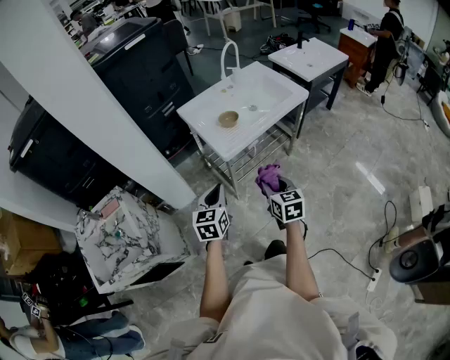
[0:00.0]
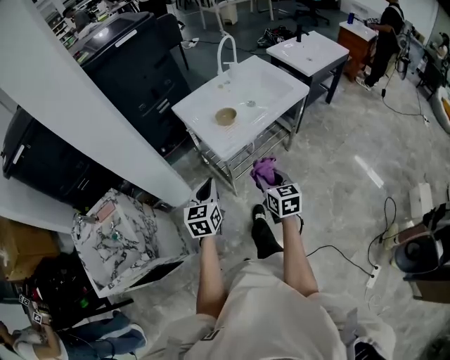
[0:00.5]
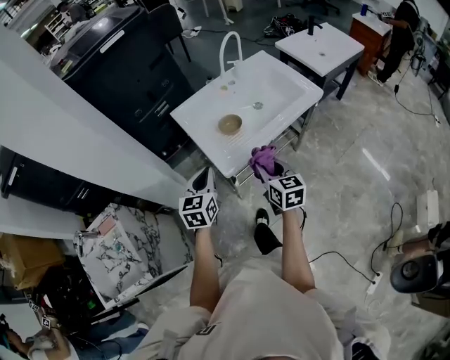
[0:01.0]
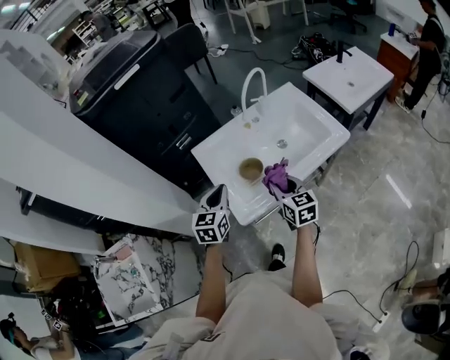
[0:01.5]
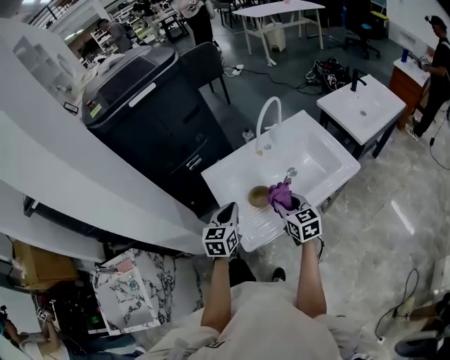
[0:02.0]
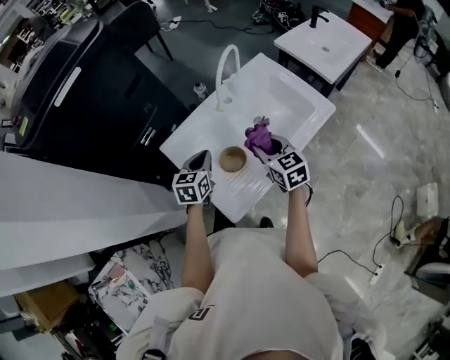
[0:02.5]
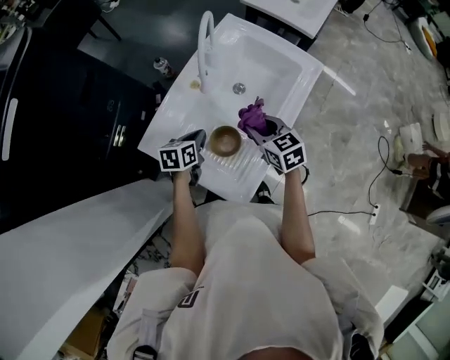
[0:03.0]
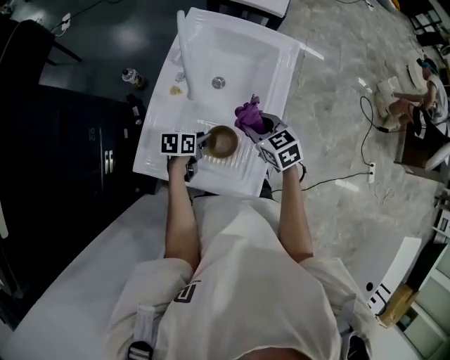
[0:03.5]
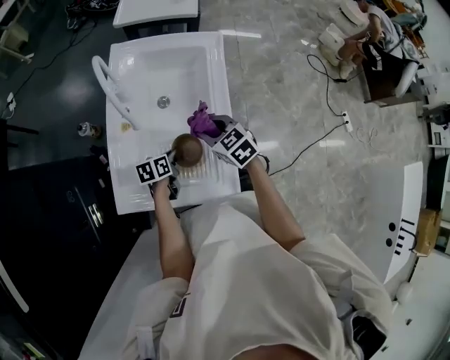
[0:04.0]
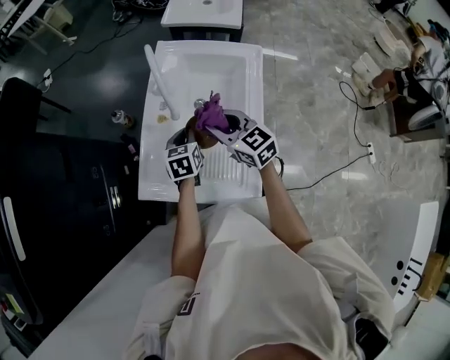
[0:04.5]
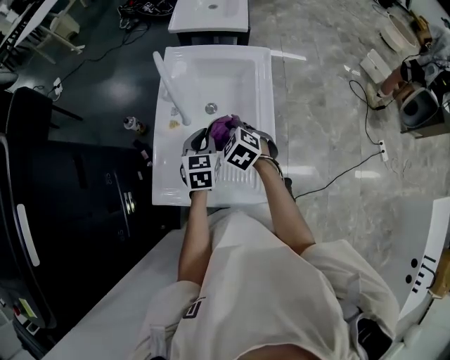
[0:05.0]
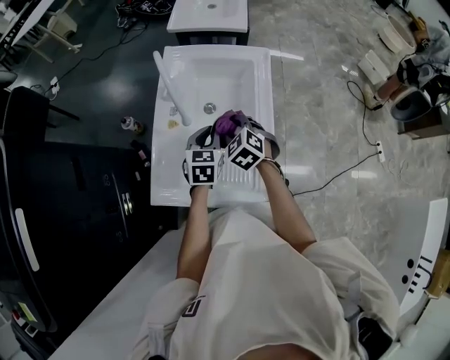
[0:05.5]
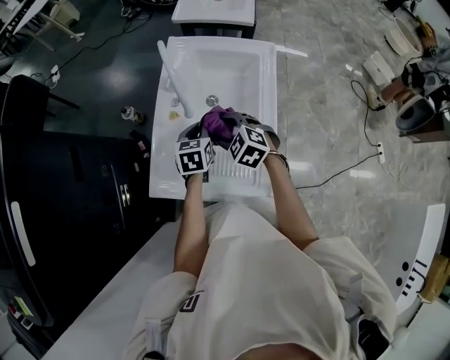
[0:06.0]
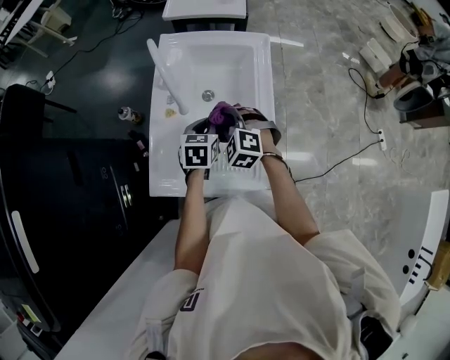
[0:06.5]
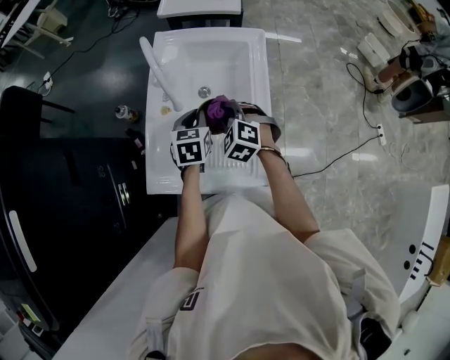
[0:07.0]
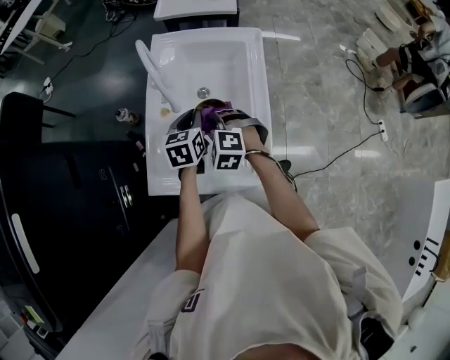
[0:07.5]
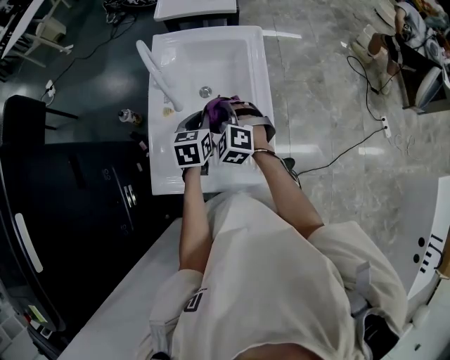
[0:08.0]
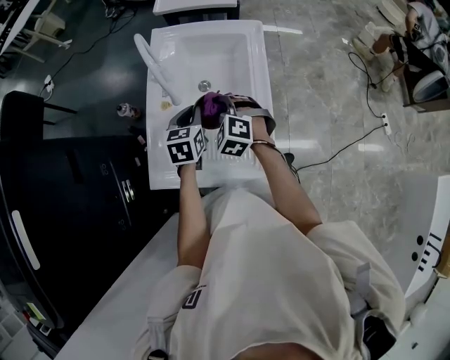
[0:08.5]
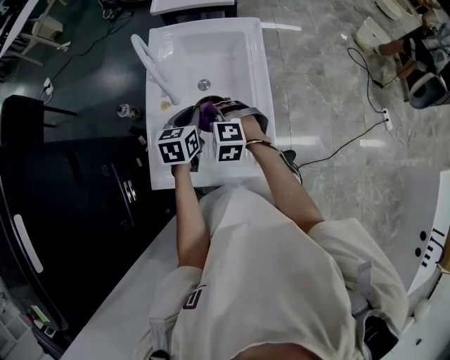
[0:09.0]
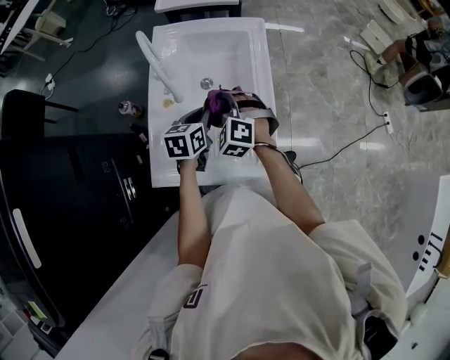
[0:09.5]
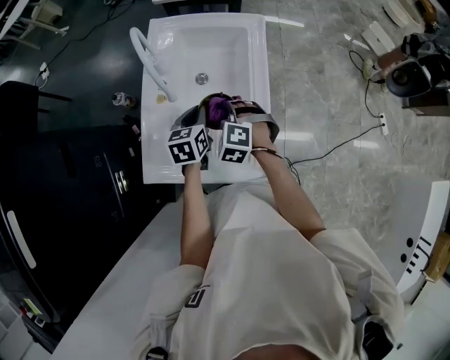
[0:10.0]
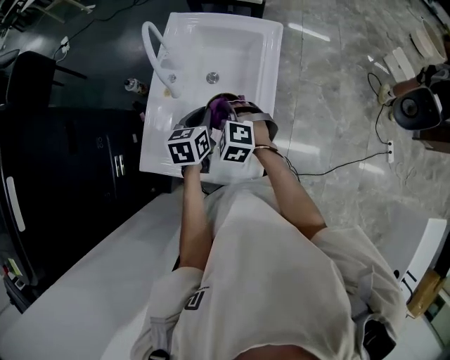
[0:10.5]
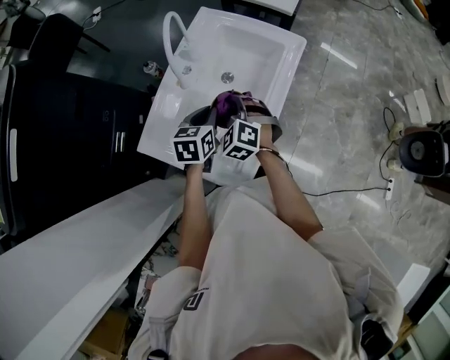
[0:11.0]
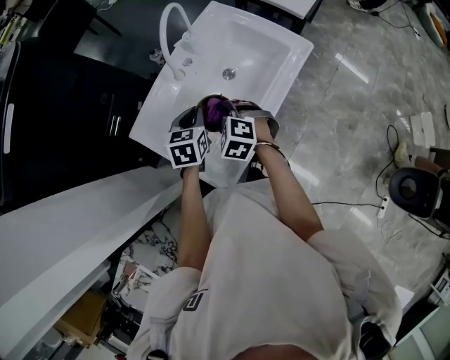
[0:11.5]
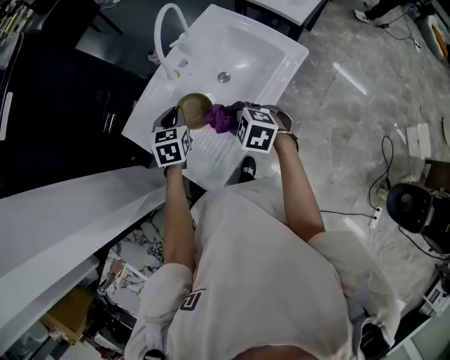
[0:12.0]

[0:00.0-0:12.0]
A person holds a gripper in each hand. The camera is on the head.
0.0 to 2.0 s: The grippers both shift forward by about 35 cm.
2.0 to 4.0 s: The left gripper heads downward, covering some 20 cm, turns by approximately 70 degrees, and opens, then closes once more, while the right gripper heads downward, covering roughly 10 cm, and turns by some 40 degrees.
4.0 to 6.0 s: The right gripper goes approximately 10 cm to the left, moves approximately 10 cm upward and comes back, turns by approximately 30 degrees, and opens up. Meanwhile the left gripper shifts roughly 15 cm upward and forward, and swivels approximately 30 degrees.
6.0 to 8.0 s: The right gripper changes its angle by approximately 20 degrees, and closes its fingers.
8.0 to 10.0 s: The right gripper changes place by roughly 5 cm.
10.0 to 12.0 s: The left gripper ends up approximately 5 cm from where it was, and swivels roughly 40 degrees, while the right gripper moves some 10 cm, and rotates about 50 degrees.

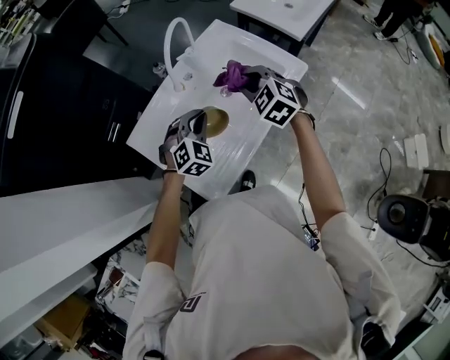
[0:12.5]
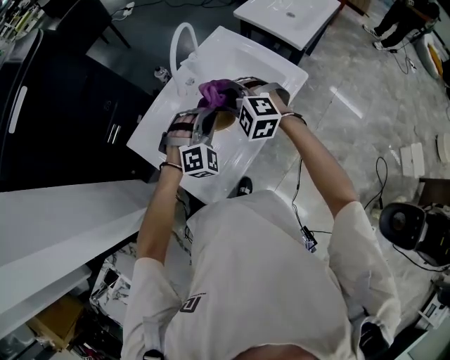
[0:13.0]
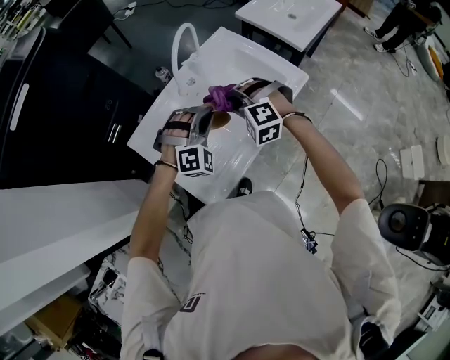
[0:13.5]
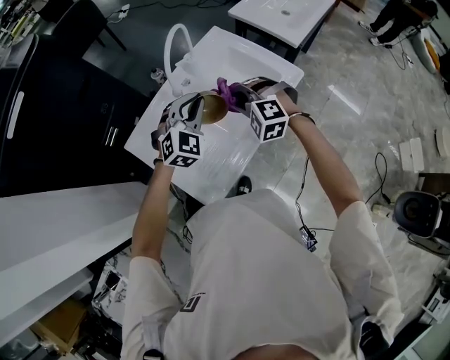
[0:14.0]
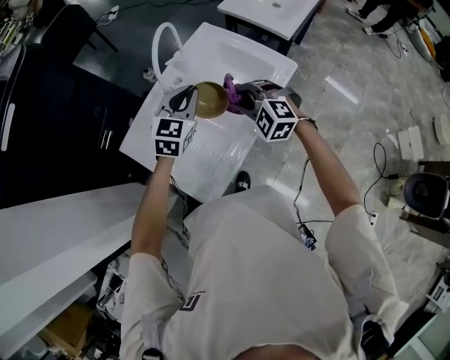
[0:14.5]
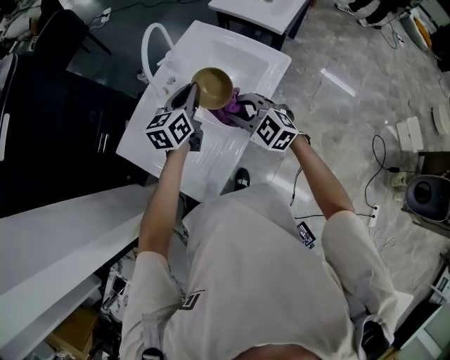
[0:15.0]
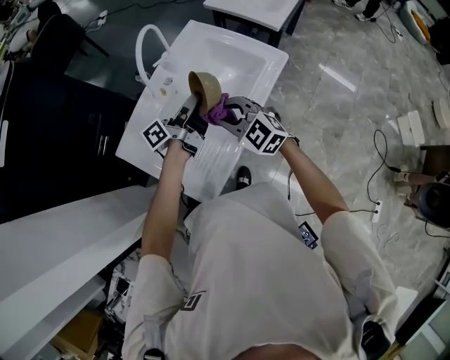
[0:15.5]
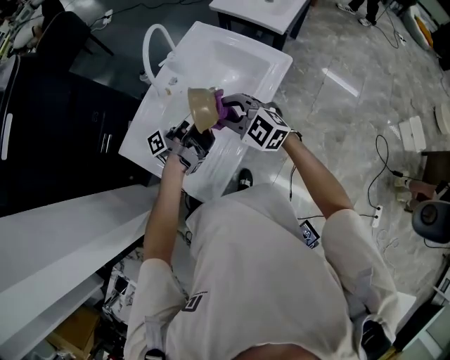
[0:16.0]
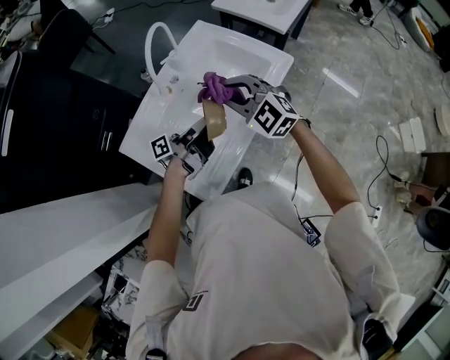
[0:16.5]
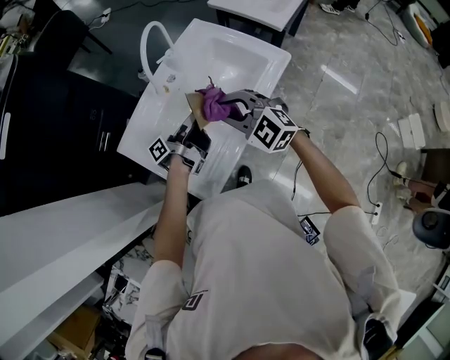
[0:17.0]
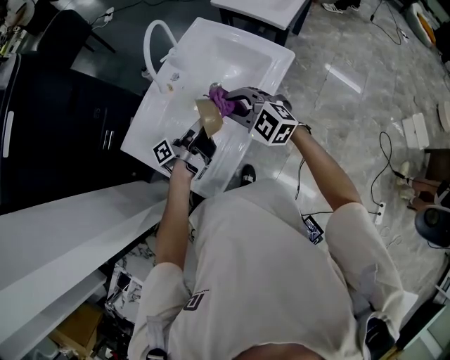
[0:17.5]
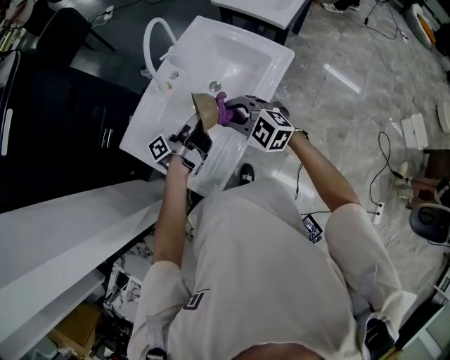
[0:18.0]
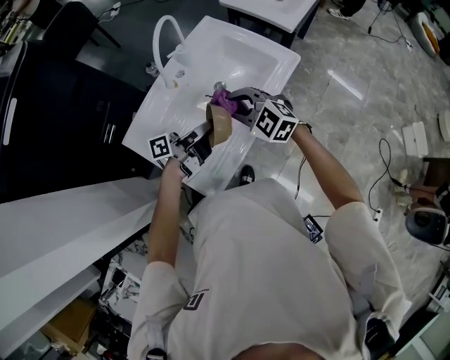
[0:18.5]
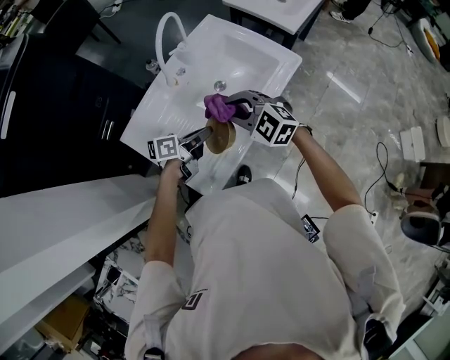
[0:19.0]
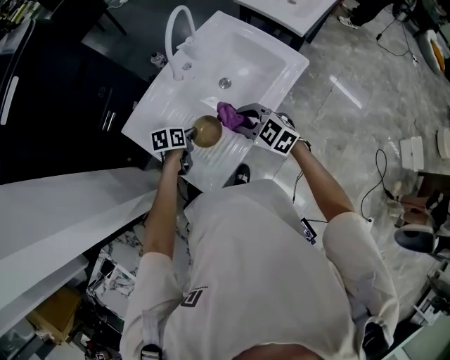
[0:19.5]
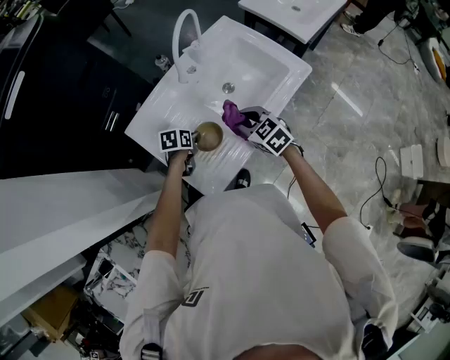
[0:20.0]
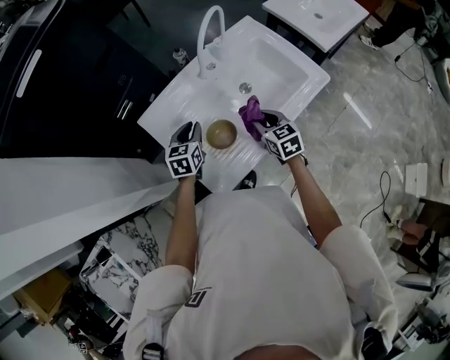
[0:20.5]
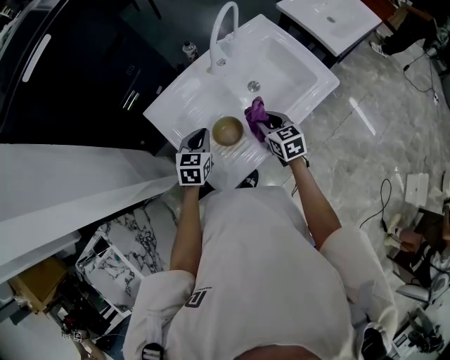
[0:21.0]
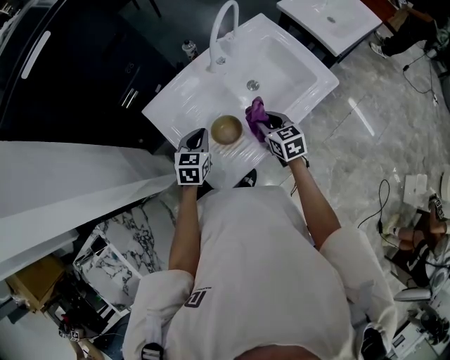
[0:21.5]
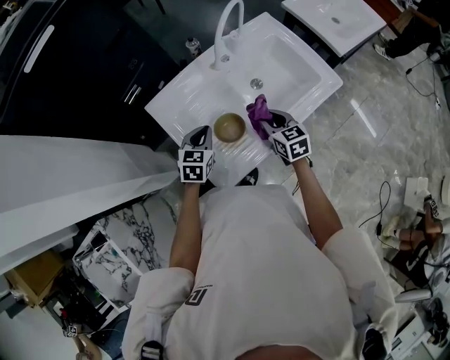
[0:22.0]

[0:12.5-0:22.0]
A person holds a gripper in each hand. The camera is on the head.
12.5 to 14.5 s: The right gripper moves approximately 5 cm. The left gripper is displaced upward and forward by about 10 cm, and swivels some 30 degrees.
14.5 to 16.5 s: The left gripper heads backward and downward, covering approximately 10 cm, and rotates around the line of its fingers by roughly 90 degrees, counterclockwise from behind, while the right gripper moves upward, roughly 5 cm, and swivels approximately 20 degrees.
16.5 to 18.0 s: The right gripper is displaced downward and backward by roughly 10 cm.
18.0 to 20.0 s: The right gripper goes roughly 5 cm downward, and rotates approximately 30 degrees. The left gripper heads downward and to the left, covering roughly 20 cm, and points its fingers about 70 degrees further downward.
20.0 to 22.0 s: The left gripper heads upward, covering about 10 cm, and rotates about 40 degrees.

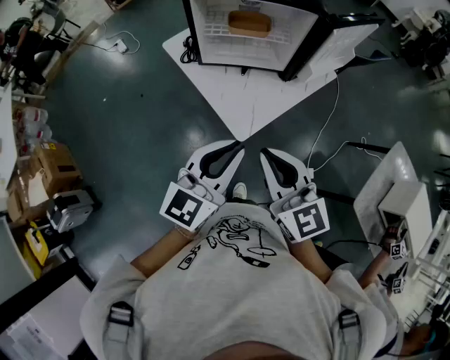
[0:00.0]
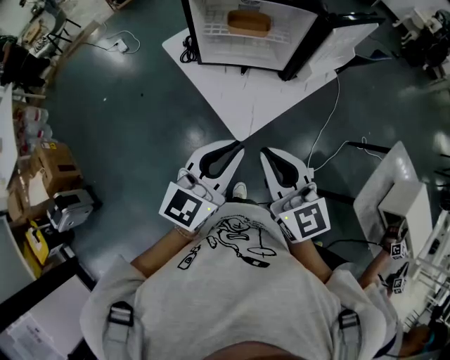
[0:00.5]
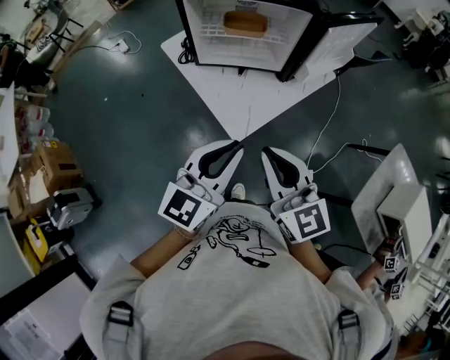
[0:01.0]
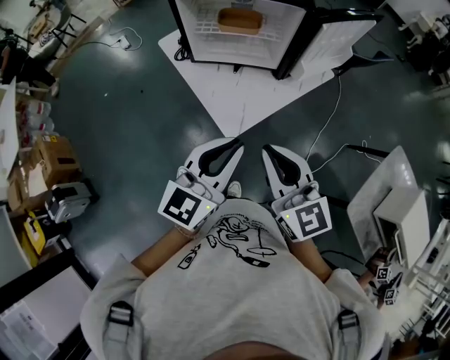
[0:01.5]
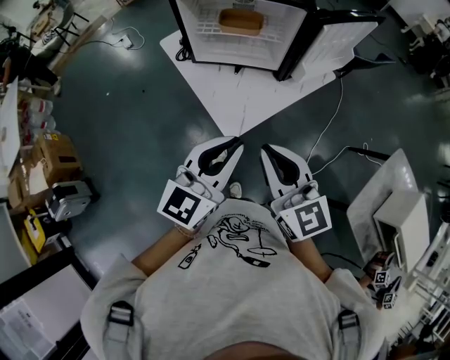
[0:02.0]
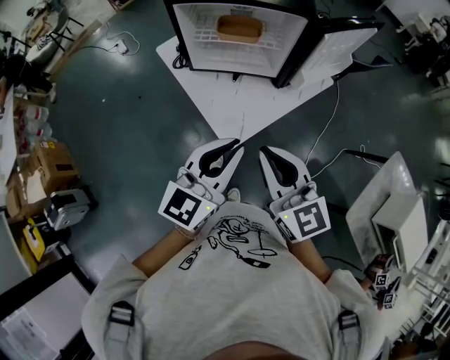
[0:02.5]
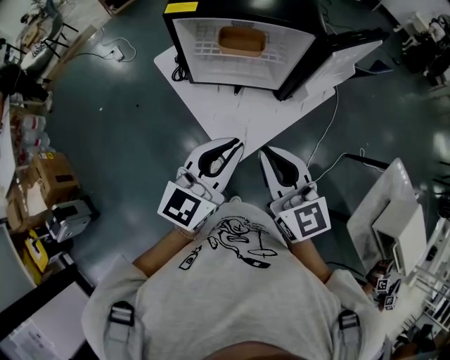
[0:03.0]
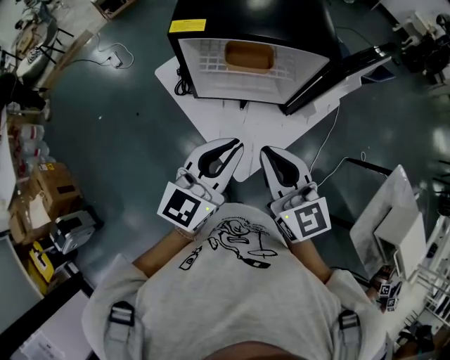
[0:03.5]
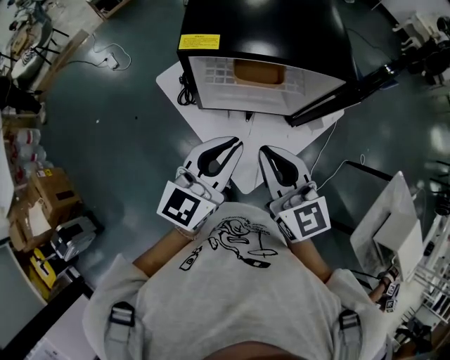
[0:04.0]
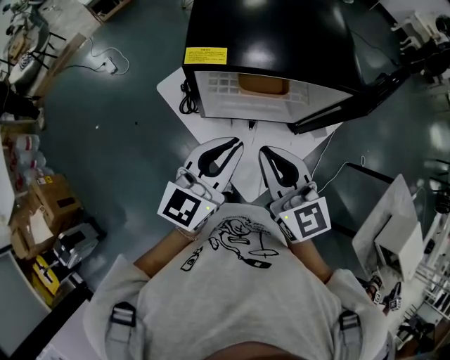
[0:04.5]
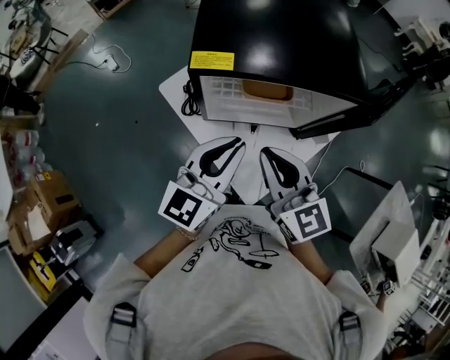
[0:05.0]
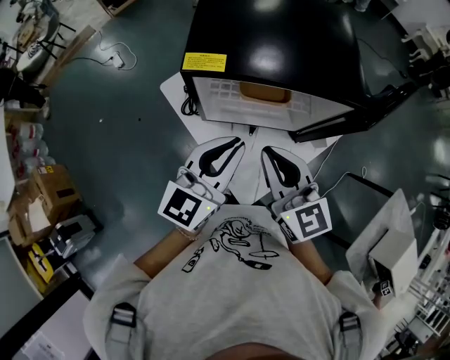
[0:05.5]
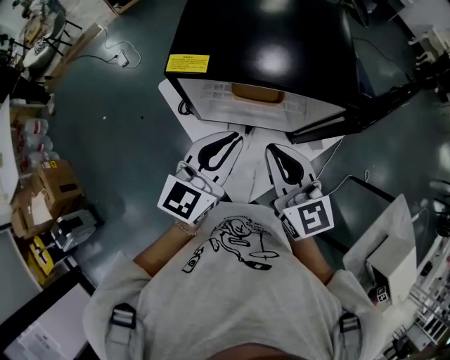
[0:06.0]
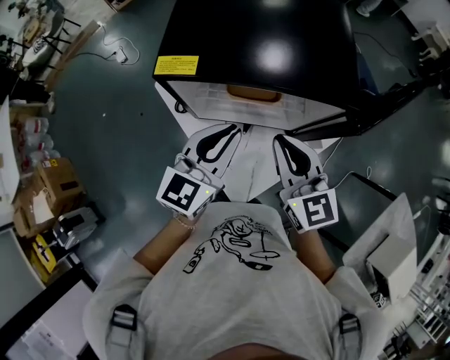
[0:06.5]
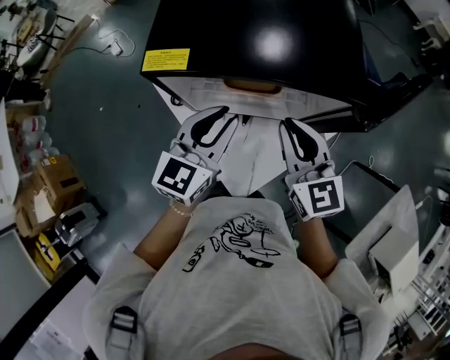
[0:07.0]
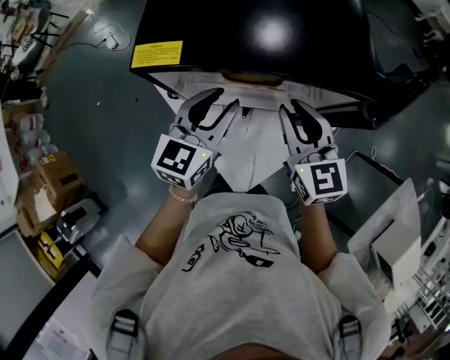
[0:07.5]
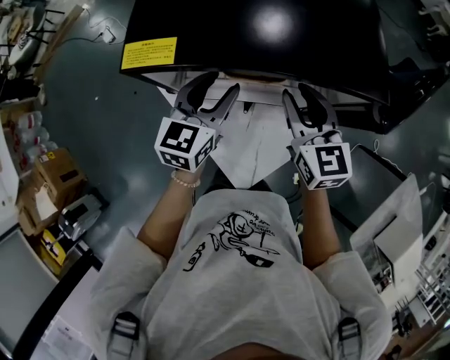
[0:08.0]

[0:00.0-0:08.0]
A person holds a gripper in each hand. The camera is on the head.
0.0 to 2.0 s: The grippers both shift to the right by some 5 cm.
2.0 to 4.0 s: Both grippers move forward and to the left, roughly 25 cm.
4.0 to 6.0 s: The grippers both shift forward by roughly 10 cm.
6.0 to 8.0 s: The grippers both shift forward and downward by some 15 cm. The right gripper opens, while the left gripper opens its fingers.
